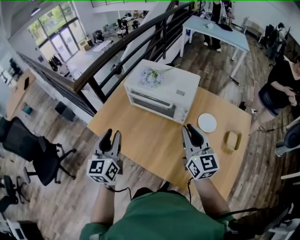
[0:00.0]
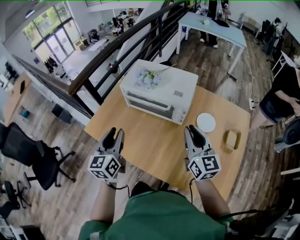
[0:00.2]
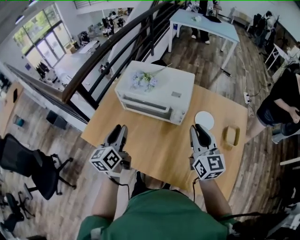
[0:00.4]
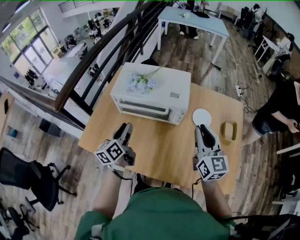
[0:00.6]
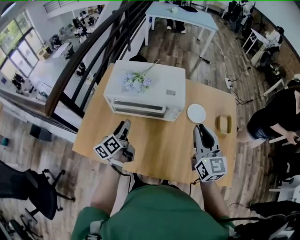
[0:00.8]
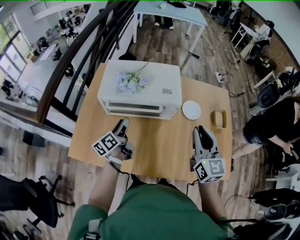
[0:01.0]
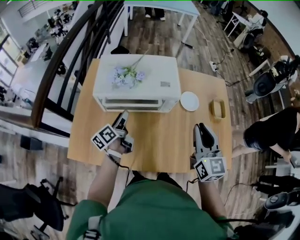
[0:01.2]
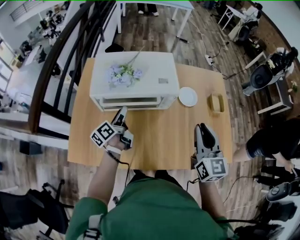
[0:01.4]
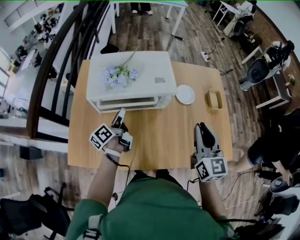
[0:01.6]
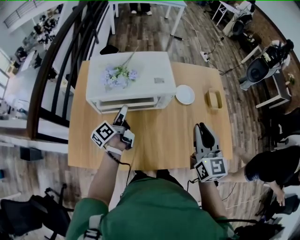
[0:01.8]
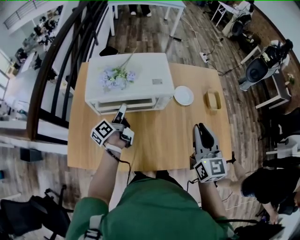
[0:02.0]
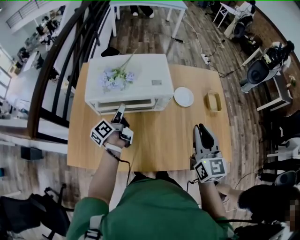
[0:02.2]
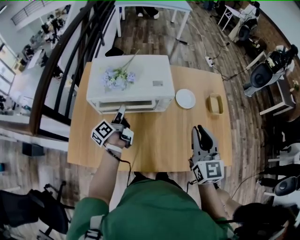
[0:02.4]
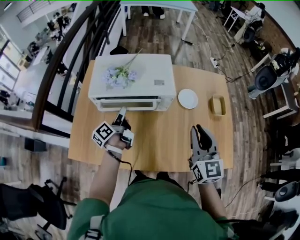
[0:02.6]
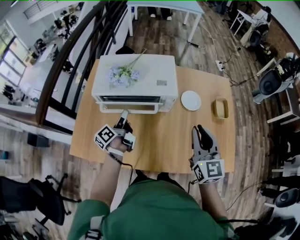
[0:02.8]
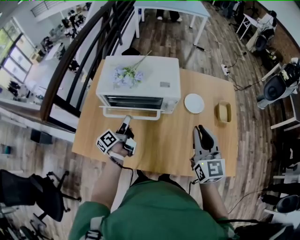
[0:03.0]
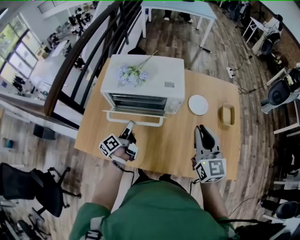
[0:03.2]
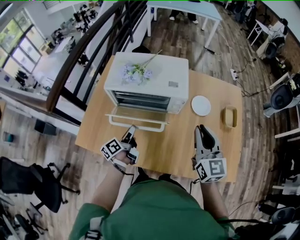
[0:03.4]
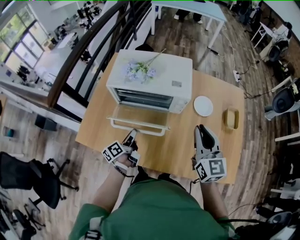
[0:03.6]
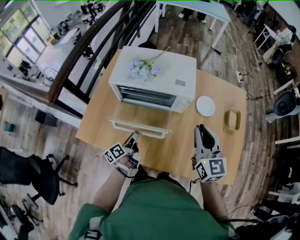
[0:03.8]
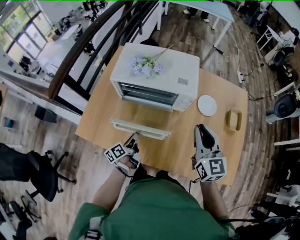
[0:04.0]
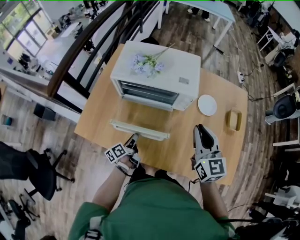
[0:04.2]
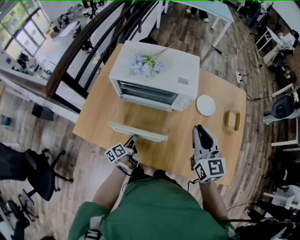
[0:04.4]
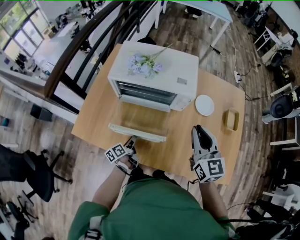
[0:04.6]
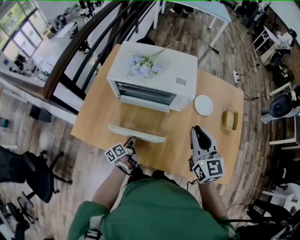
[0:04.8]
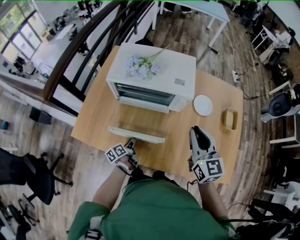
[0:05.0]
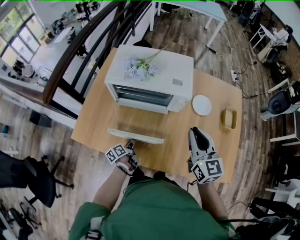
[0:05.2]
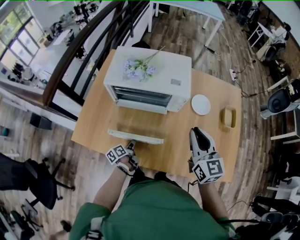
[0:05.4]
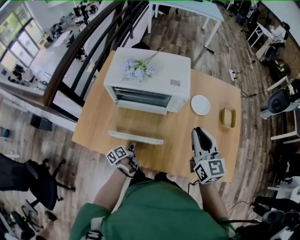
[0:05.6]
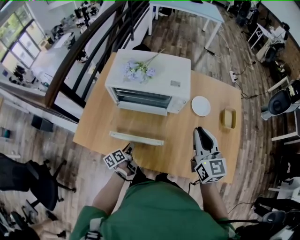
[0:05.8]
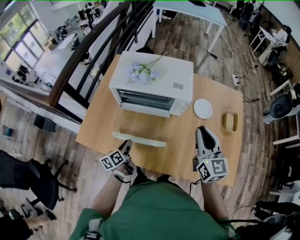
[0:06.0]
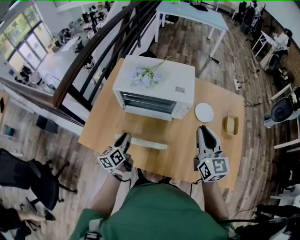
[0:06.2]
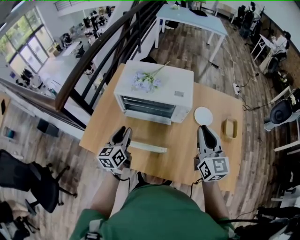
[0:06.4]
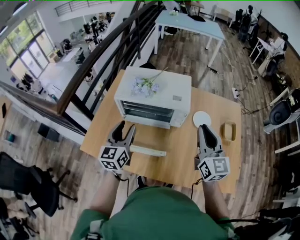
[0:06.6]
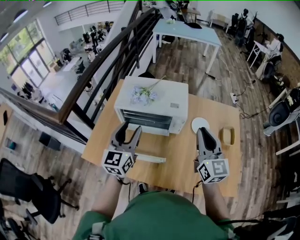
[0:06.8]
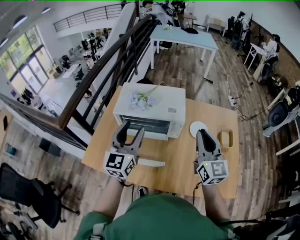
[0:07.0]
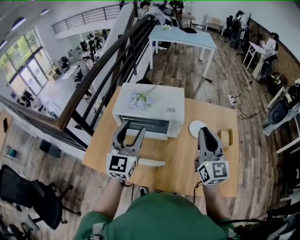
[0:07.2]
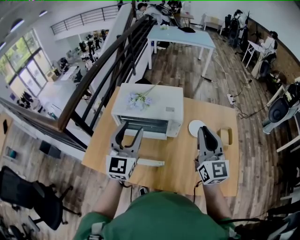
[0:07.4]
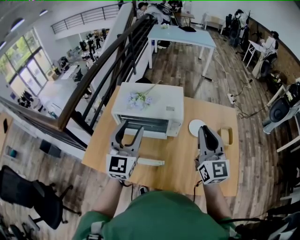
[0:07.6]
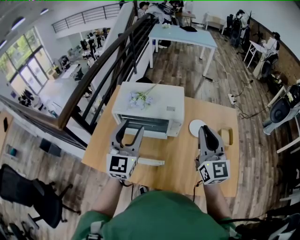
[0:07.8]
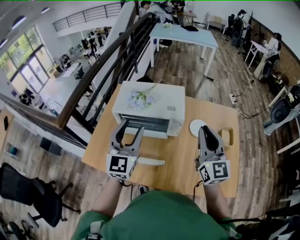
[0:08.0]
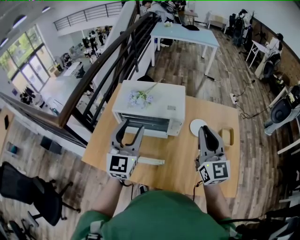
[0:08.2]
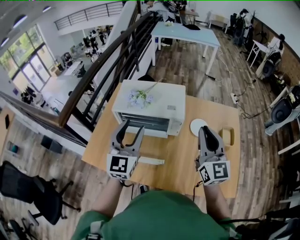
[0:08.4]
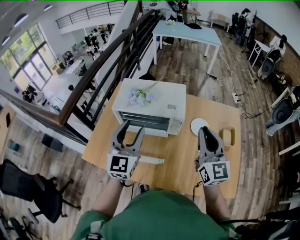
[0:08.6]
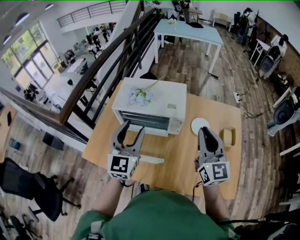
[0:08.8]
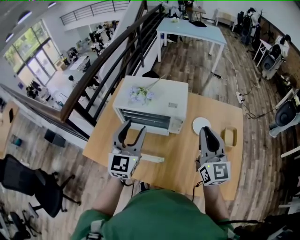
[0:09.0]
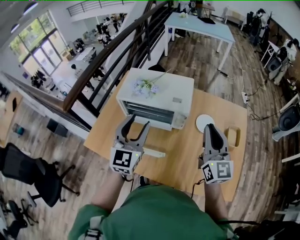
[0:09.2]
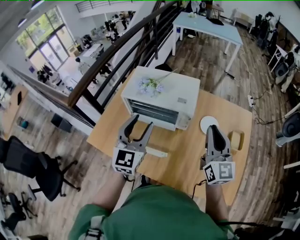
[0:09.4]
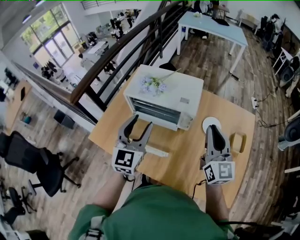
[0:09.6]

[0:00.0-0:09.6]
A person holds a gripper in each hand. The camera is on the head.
0.0 to 1.6 s: The left gripper ends up approximately 35 cm from where it was, and twists some 60 degrees counterclockwise, seen from behind, while the right gripper swivels about 40 degrees.
1.6 to 3.2 s: The left gripper goes roughly 10 cm backward.
3.2 to 4.8 s: The right gripper shifts by roughly 5 cm; the left gripper goes some 20 cm downward and backward, and rotates some 20 degrees.
4.8 to 6.4 s: The left gripper heads upward, covering roughly 25 cm, and rolls clockwise, seen from behind, by approximately 50 degrees; the right gripper heads upward, covering roughly 5 cm.
6.4 to 8.0 s: The left gripper moves upward and to the right, about 20 cm, changes its angle by roughly 40 degrees, and opens its fingers, while the right gripper shifts about 10 cm upward.
8.0 to 9.6 s: The right gripper changes place by some 5 cm.

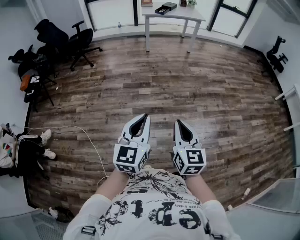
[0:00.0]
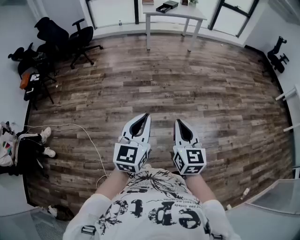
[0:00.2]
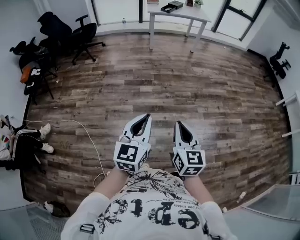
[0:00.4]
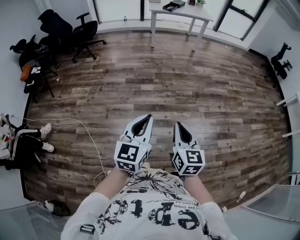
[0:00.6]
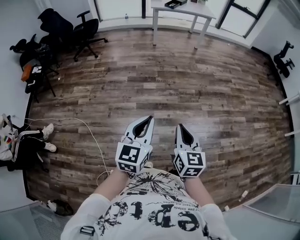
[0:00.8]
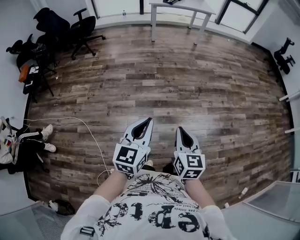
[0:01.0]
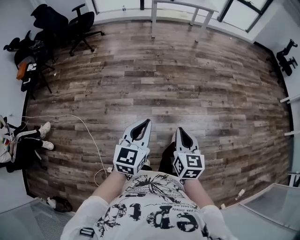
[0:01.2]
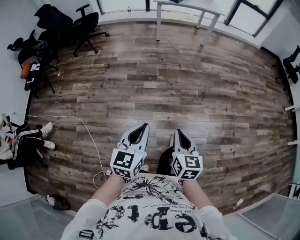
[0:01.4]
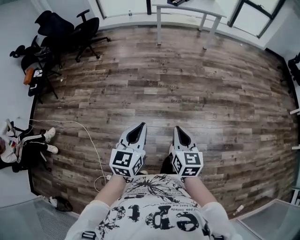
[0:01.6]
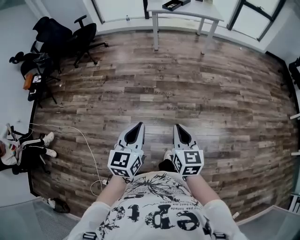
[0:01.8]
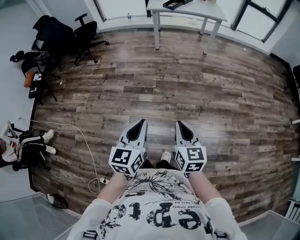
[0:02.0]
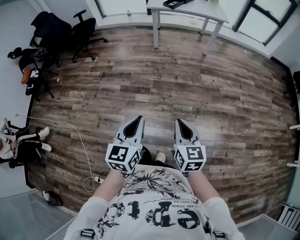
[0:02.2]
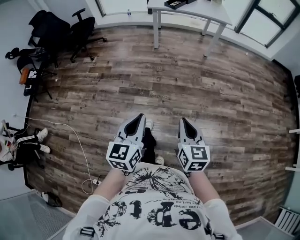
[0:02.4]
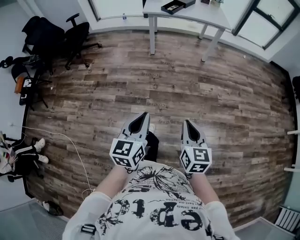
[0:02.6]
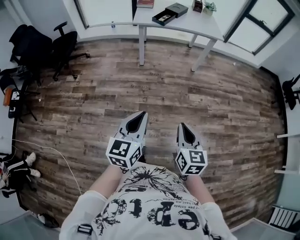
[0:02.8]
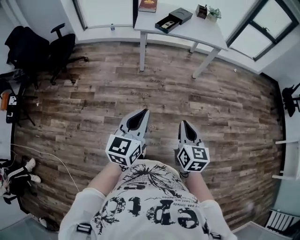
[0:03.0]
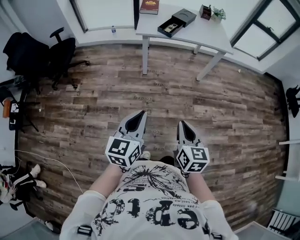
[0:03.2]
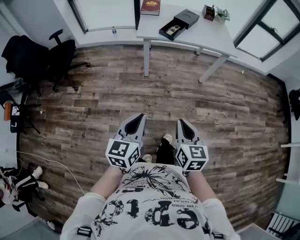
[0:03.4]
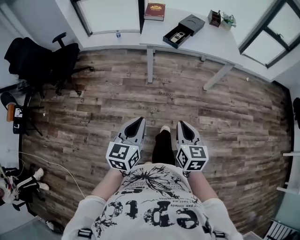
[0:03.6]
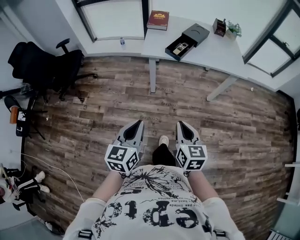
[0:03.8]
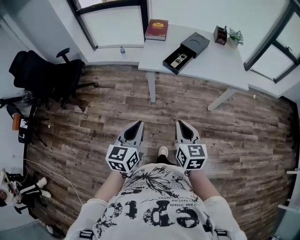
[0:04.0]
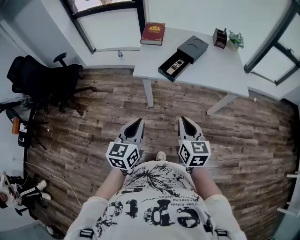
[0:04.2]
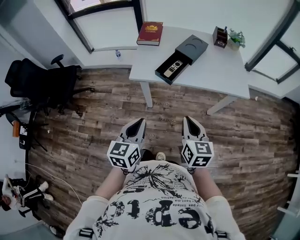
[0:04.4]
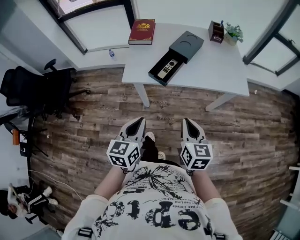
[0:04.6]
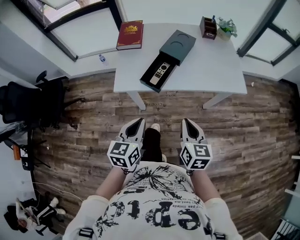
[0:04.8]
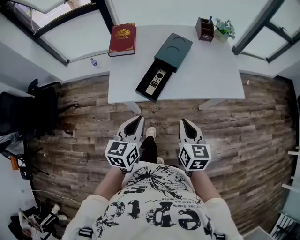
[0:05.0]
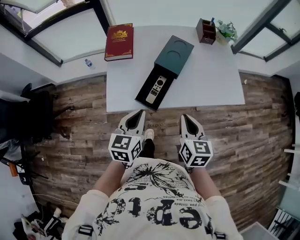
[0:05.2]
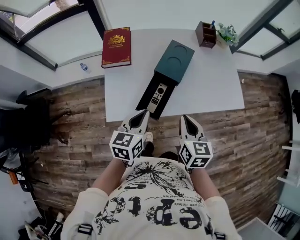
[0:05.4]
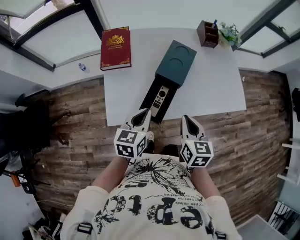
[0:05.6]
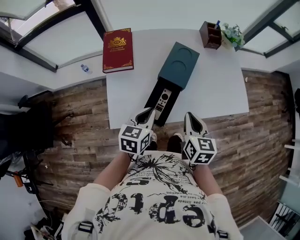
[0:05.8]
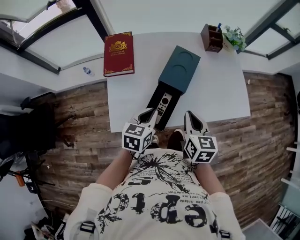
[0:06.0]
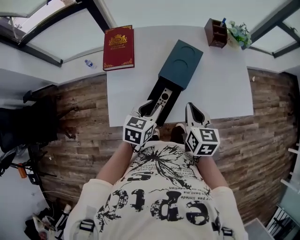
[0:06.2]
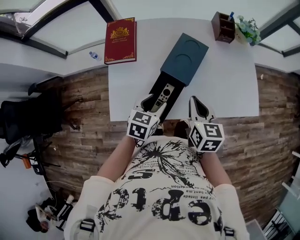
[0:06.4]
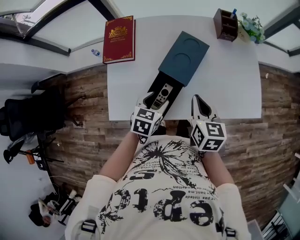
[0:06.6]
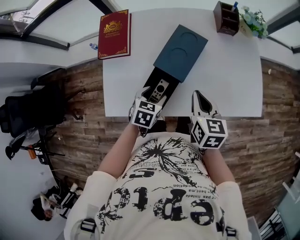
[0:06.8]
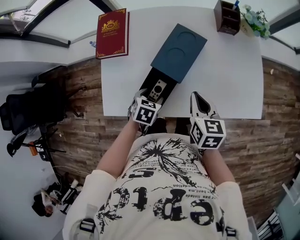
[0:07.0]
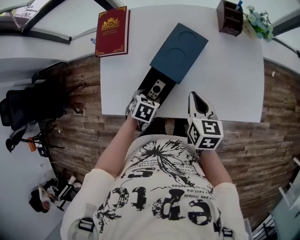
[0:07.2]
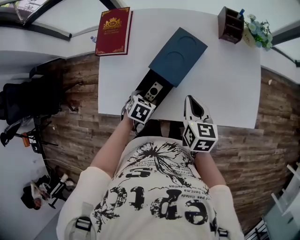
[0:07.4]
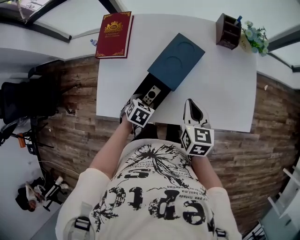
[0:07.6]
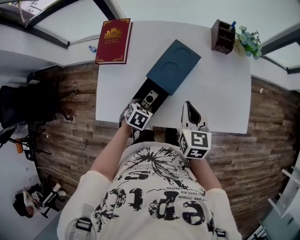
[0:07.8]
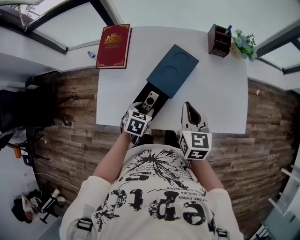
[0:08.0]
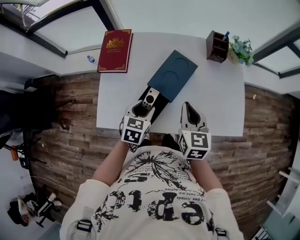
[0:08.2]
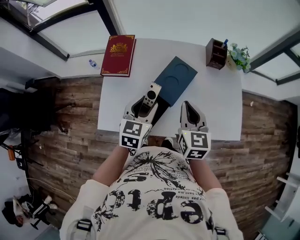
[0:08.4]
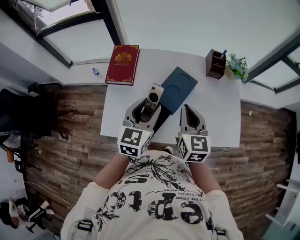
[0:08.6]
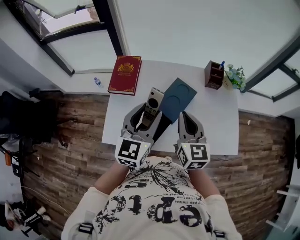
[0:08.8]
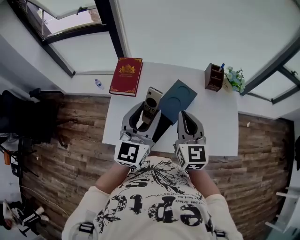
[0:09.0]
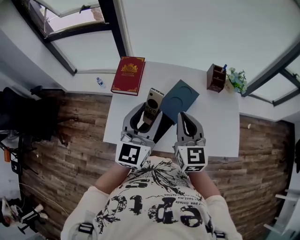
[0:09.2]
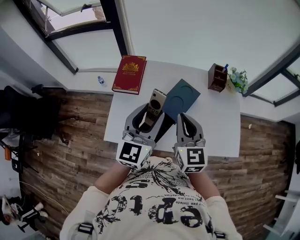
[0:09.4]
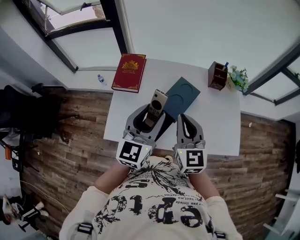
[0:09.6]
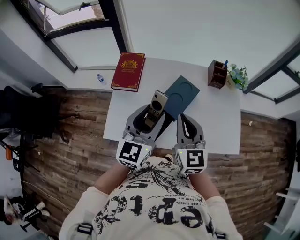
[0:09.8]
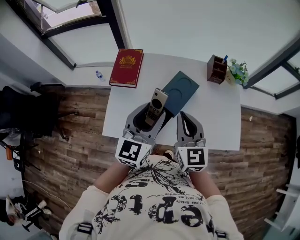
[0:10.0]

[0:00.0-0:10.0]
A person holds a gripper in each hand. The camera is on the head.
0.0 to 1.4 s: The grippers both shift forward and downward by some 15 cm.
1.4 to 2.8 s: Both grippers are carried forward, approximately 50 cm.
2.8 to 4.2 s: Both grippers are carried forward, approximately 60 cm.
4.2 to 5.8 s: The two grippers go about 40 cm forward. The left gripper turns by about 30 degrees, while the right gripper swivels approximately 20 degrees.
5.8 to 7.2 s: The left gripper shifts about 15 cm downward, tips its fingers downward by about 40 degrees, and opens up; the right gripper shifts roughly 15 cm forward and to the right.
7.2 to 8.6 s: The right gripper moves upward, approximately 15 cm, and swivels some 30 degrees, while the left gripper goes about 30 cm upward, and angles its fingers upward, by some 50 degrees.
8.6 to 10.0 s: The left gripper shifts about 5 cm upward. Meanwhile the right gripper changes place by roughly 5 cm.

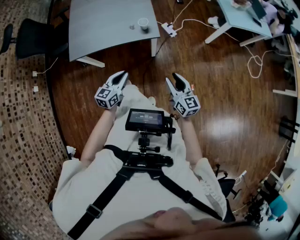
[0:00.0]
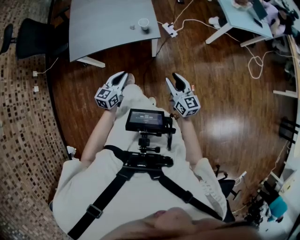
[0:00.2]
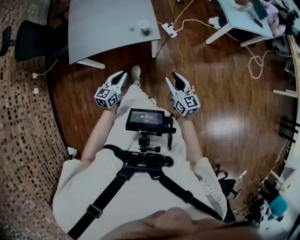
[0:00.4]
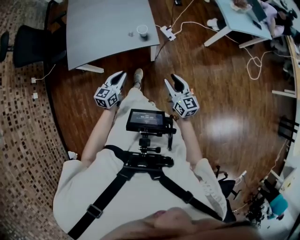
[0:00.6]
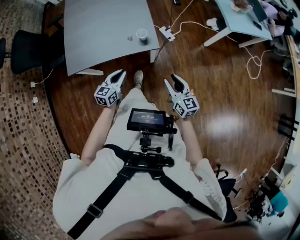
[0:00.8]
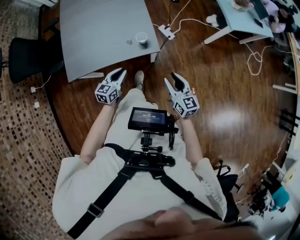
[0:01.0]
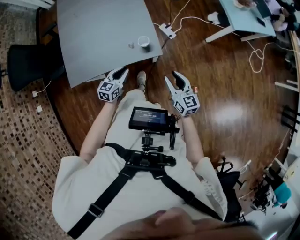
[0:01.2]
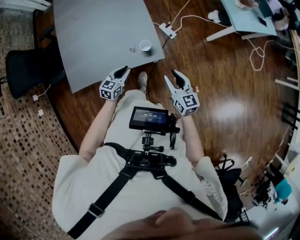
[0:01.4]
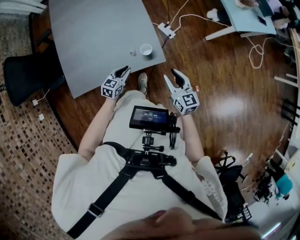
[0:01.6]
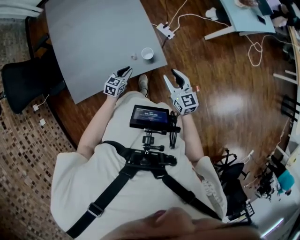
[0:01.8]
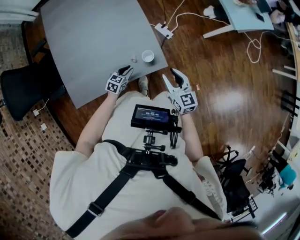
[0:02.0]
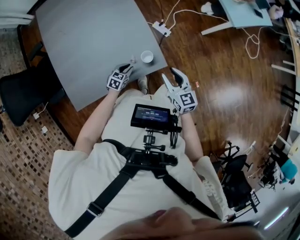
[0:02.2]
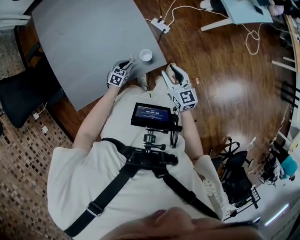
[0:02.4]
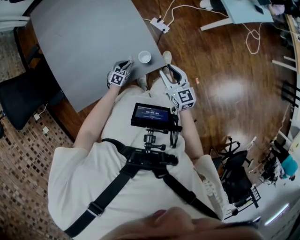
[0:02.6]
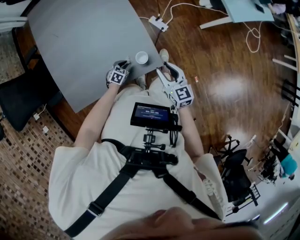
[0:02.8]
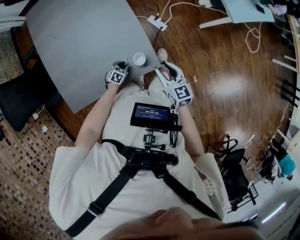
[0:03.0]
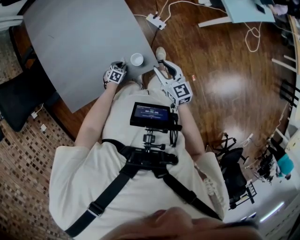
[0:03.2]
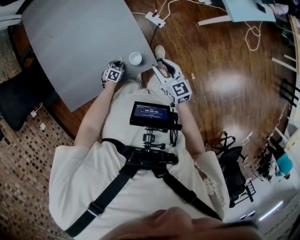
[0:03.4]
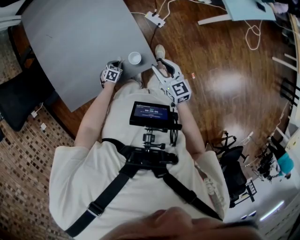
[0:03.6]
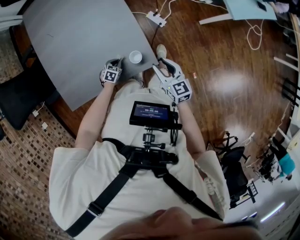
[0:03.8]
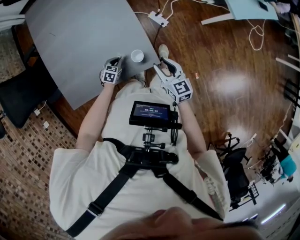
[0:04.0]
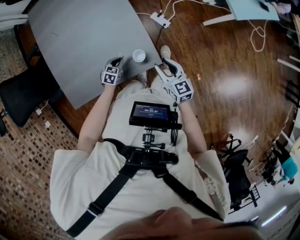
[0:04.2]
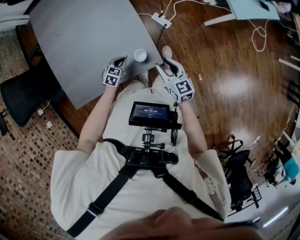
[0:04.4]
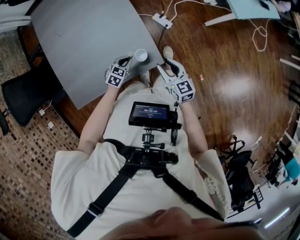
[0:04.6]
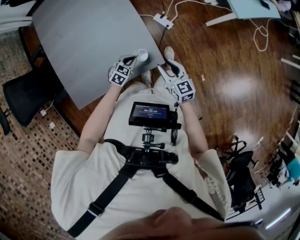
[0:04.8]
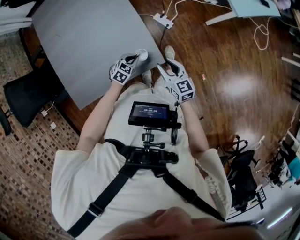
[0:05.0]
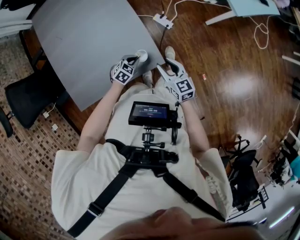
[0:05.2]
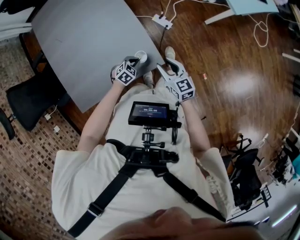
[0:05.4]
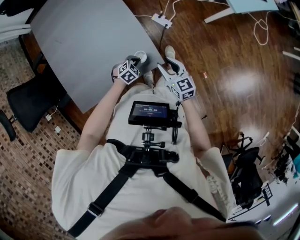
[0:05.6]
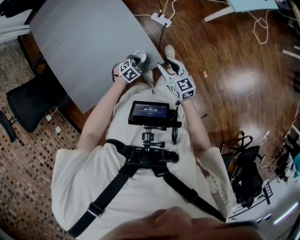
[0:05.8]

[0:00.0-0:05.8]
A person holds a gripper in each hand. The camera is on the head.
0.0 to 1.4 s: Both grippers travel together forward, approximately 25 cm.
1.4 to 2.8 s: The left gripper shifts roughly 20 cm downward and forward, and turns by approximately 30 degrees, while the right gripper moves forward and to the left, approximately 10 cm.
2.8 to 4.4 s: The left gripper heads upward and forward, covering about 10 cm, and closes its fingers, while the right gripper moves downward, some 5 cm.
4.4 to 5.8 s: The left gripper moves to the right, approximately 10 cm, and turns by about 30 degrees.
